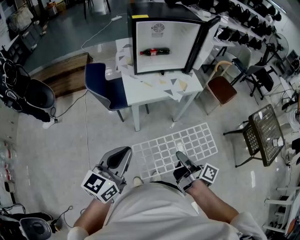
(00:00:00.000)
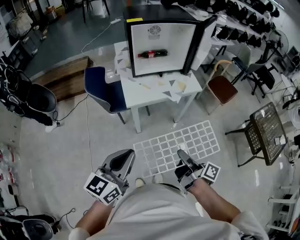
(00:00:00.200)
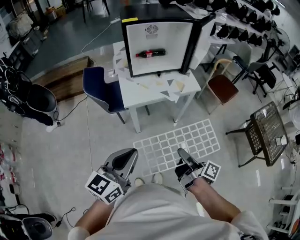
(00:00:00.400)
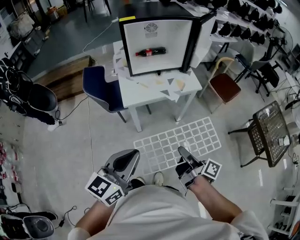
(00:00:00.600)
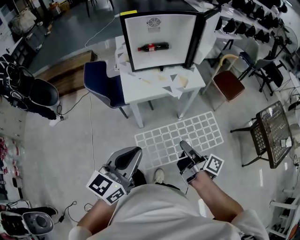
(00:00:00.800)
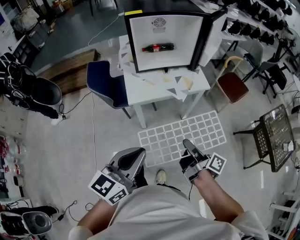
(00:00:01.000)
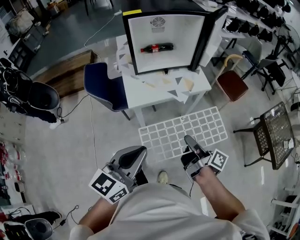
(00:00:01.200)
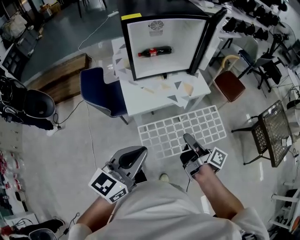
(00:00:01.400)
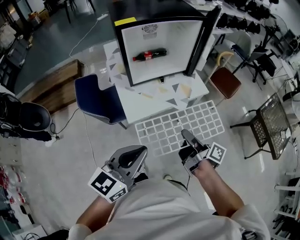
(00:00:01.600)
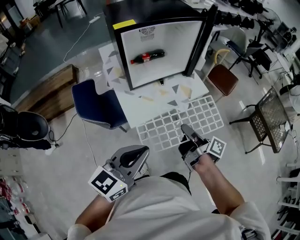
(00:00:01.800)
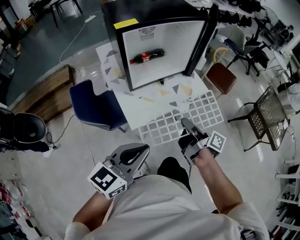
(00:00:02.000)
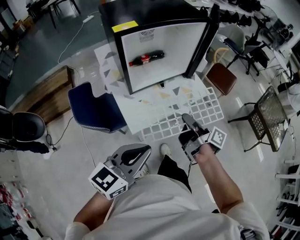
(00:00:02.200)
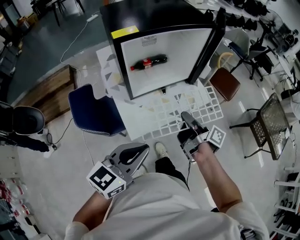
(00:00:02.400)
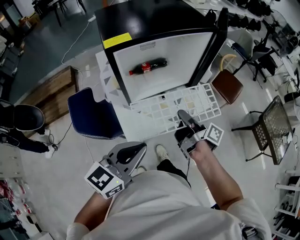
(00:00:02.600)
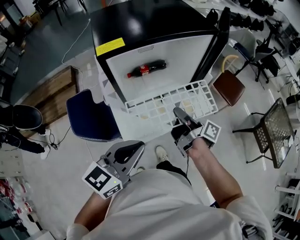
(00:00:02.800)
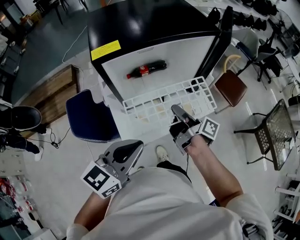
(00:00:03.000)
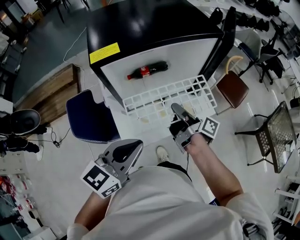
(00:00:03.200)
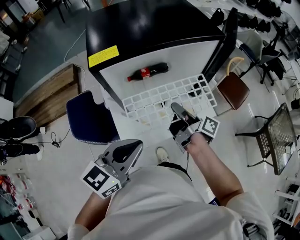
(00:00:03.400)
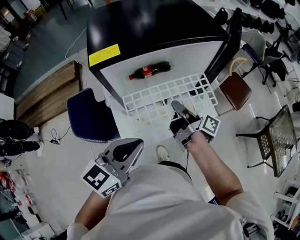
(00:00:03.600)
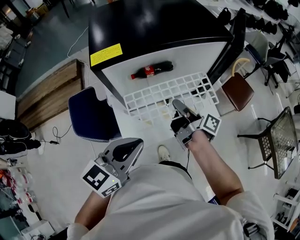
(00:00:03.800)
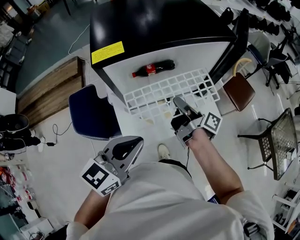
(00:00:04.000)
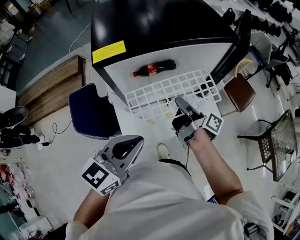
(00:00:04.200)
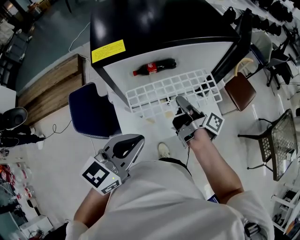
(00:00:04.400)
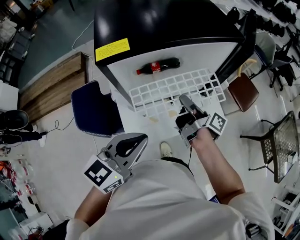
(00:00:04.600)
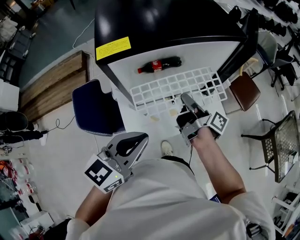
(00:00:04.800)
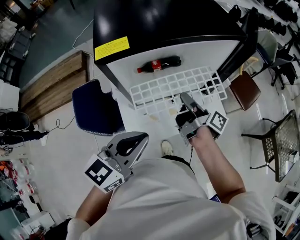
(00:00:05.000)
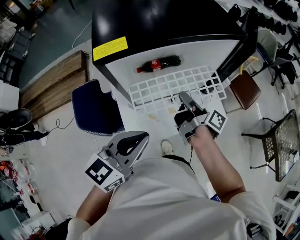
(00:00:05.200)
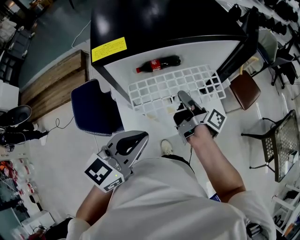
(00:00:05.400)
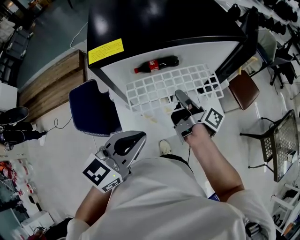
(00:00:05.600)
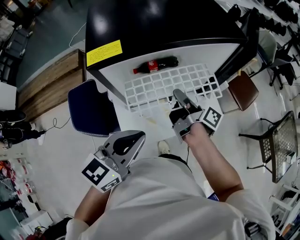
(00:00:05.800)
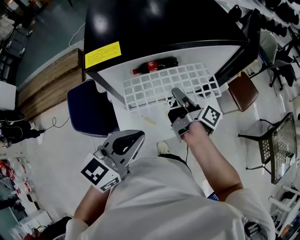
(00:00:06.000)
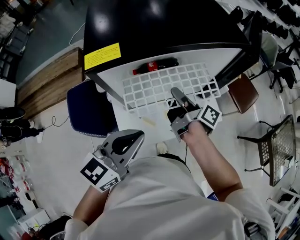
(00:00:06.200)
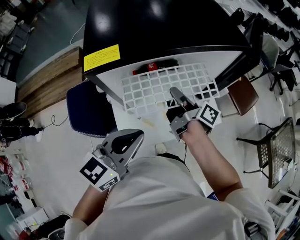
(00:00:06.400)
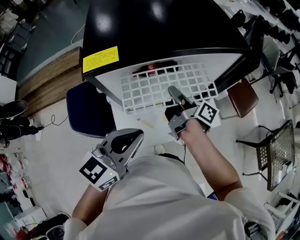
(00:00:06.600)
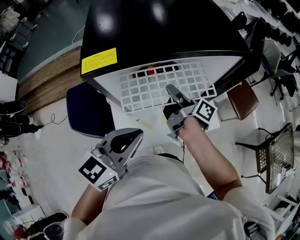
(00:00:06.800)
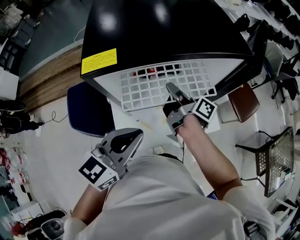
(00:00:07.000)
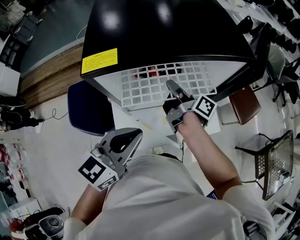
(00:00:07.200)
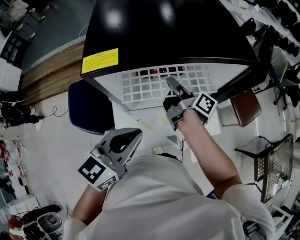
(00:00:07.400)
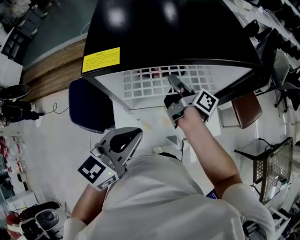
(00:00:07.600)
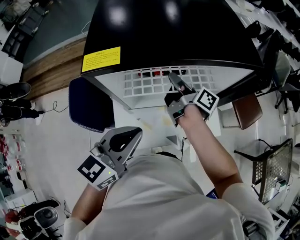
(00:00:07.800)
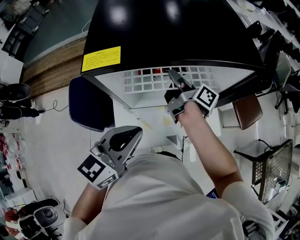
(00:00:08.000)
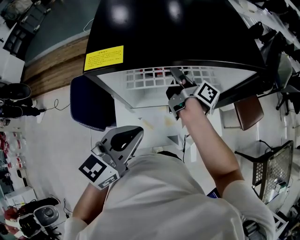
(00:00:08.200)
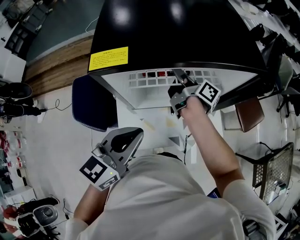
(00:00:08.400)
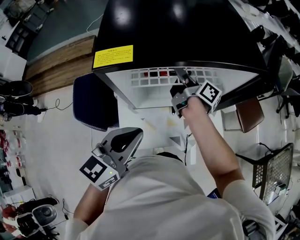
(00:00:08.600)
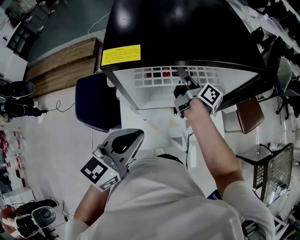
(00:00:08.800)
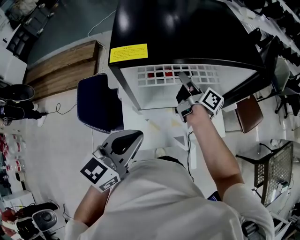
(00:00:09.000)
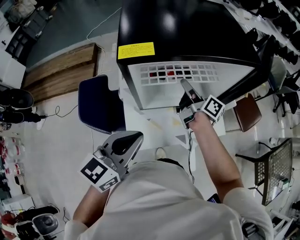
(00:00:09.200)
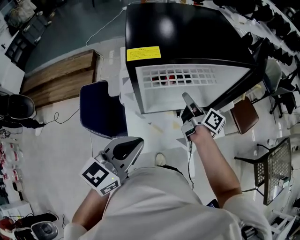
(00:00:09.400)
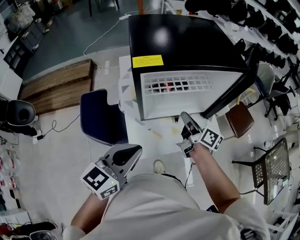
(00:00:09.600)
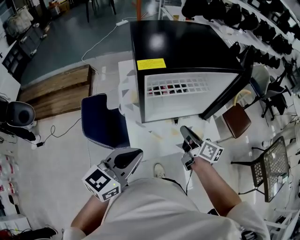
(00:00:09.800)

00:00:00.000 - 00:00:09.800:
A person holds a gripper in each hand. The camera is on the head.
00:00:00.000 - 00:00:01.400: The left gripper ends up roughly 15 cm from where it was.
00:00:01.400 - 00:00:02.800: The left gripper changes place by roughly 25 cm.
00:00:02.800 - 00:00:04.200: The left gripper changes place by roughly 5 cm.
00:00:08.400 - 00:00:09.800: The left gripper shifts by roughly 15 cm.

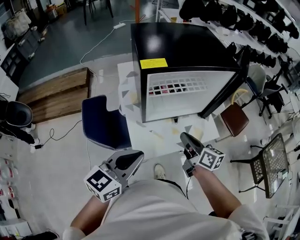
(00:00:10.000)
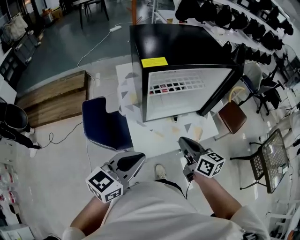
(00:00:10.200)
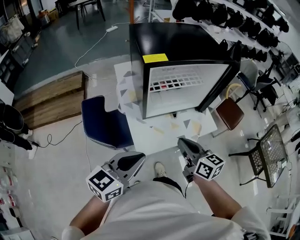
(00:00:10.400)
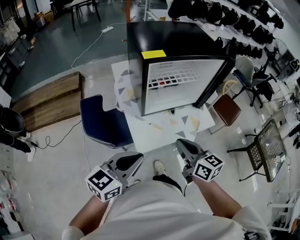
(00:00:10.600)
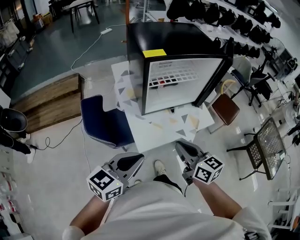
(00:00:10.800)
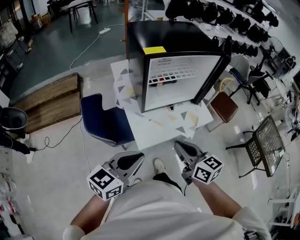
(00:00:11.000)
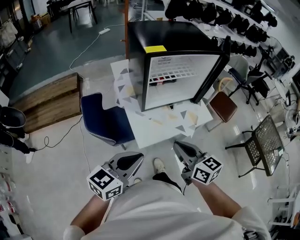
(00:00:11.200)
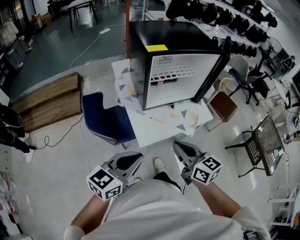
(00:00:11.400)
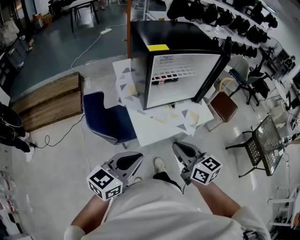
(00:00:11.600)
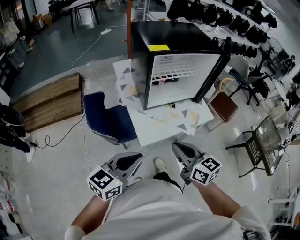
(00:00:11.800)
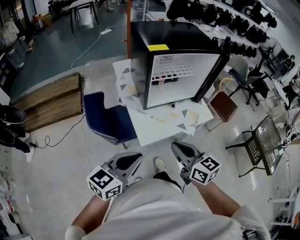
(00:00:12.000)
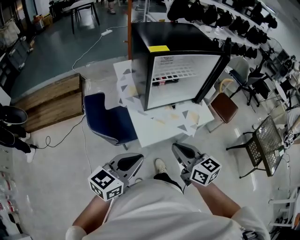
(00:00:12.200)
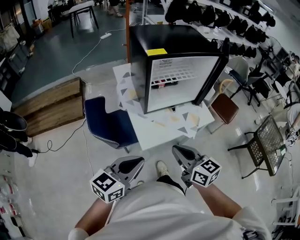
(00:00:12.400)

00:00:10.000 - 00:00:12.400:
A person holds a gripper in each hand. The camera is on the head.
00:00:10.000 - 00:00:11.200: The left gripper moves some 10 cm.

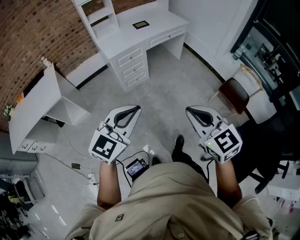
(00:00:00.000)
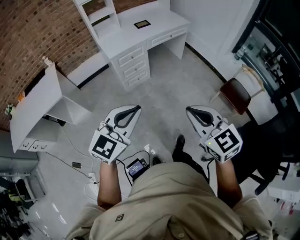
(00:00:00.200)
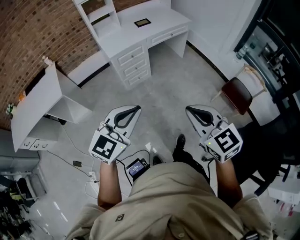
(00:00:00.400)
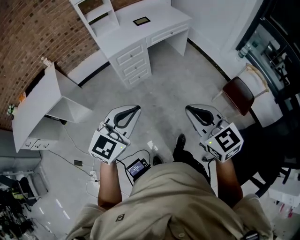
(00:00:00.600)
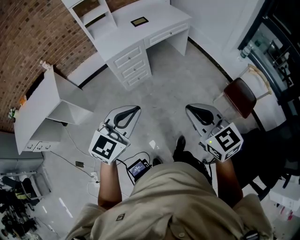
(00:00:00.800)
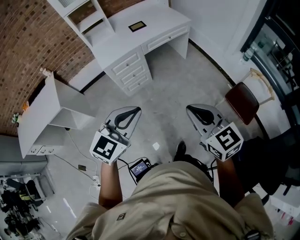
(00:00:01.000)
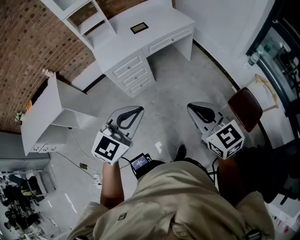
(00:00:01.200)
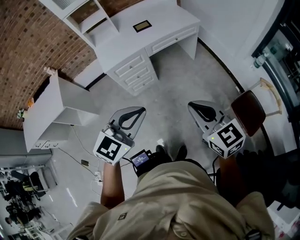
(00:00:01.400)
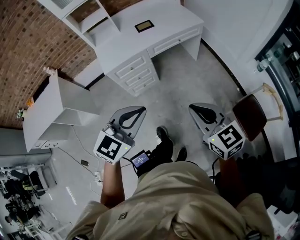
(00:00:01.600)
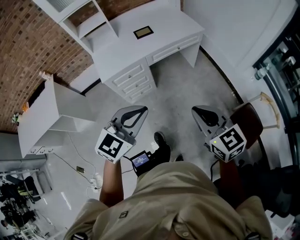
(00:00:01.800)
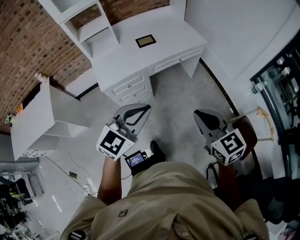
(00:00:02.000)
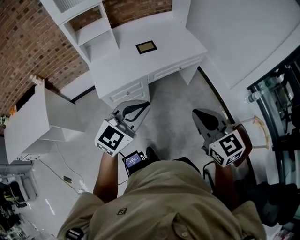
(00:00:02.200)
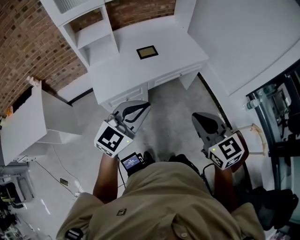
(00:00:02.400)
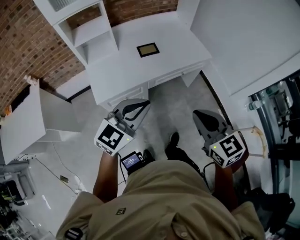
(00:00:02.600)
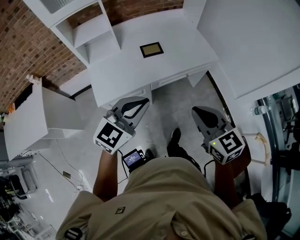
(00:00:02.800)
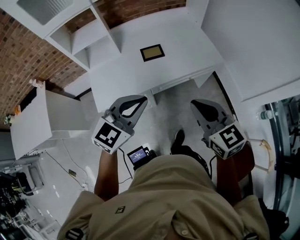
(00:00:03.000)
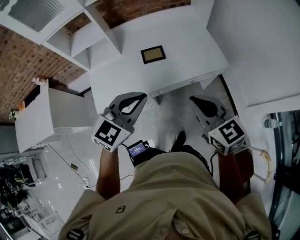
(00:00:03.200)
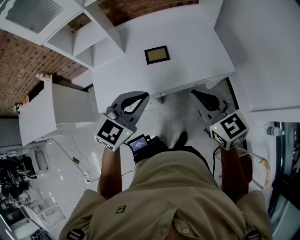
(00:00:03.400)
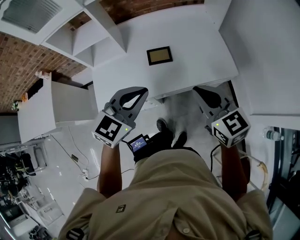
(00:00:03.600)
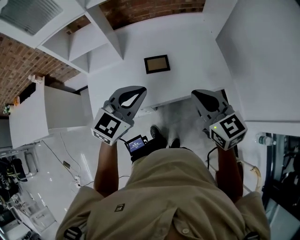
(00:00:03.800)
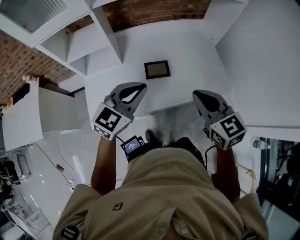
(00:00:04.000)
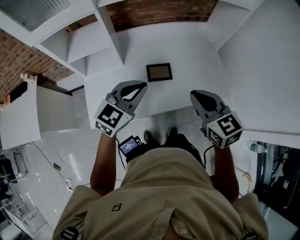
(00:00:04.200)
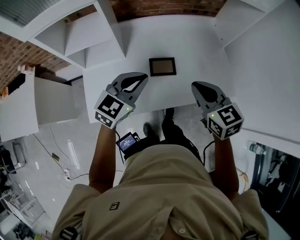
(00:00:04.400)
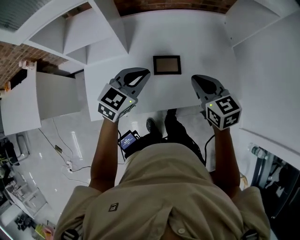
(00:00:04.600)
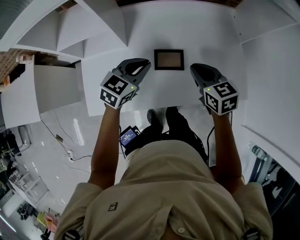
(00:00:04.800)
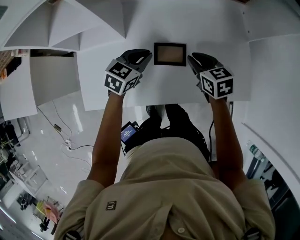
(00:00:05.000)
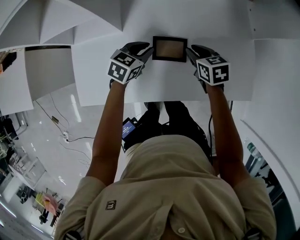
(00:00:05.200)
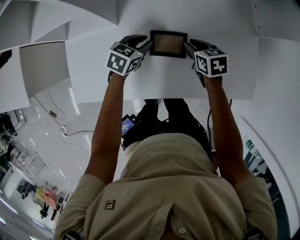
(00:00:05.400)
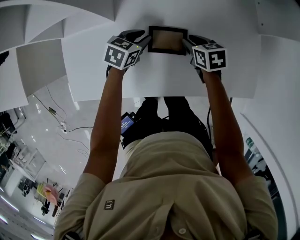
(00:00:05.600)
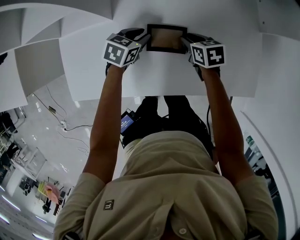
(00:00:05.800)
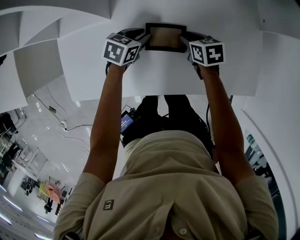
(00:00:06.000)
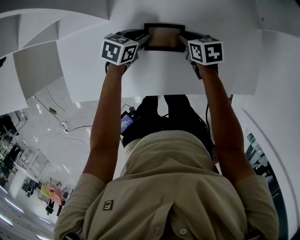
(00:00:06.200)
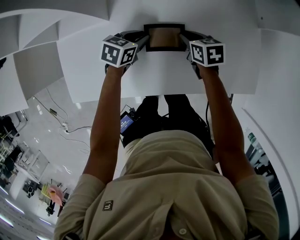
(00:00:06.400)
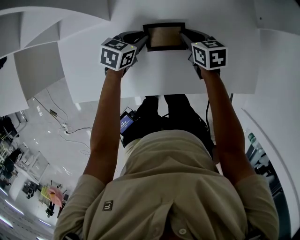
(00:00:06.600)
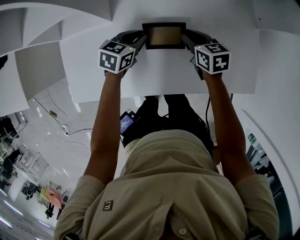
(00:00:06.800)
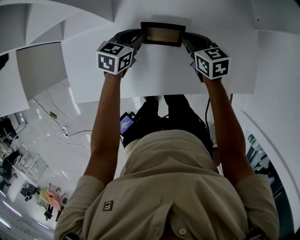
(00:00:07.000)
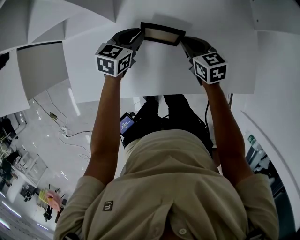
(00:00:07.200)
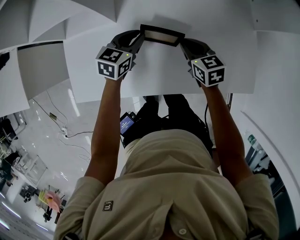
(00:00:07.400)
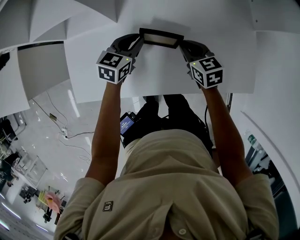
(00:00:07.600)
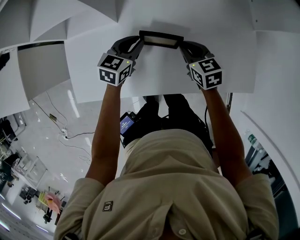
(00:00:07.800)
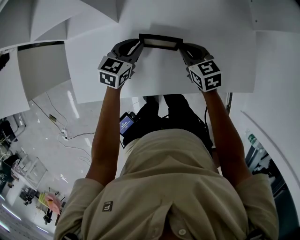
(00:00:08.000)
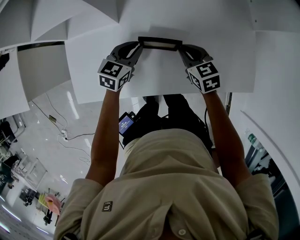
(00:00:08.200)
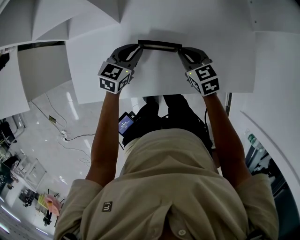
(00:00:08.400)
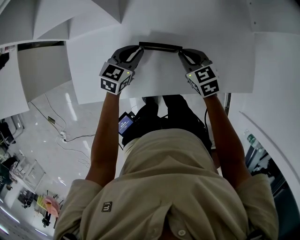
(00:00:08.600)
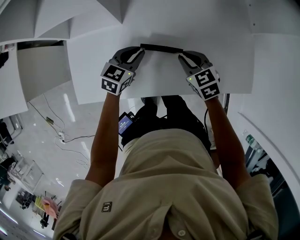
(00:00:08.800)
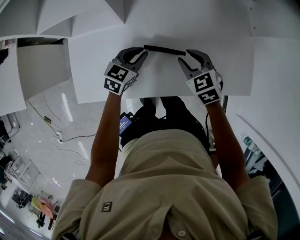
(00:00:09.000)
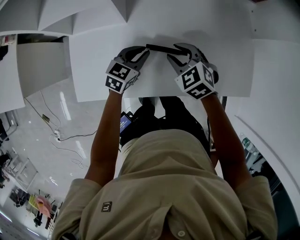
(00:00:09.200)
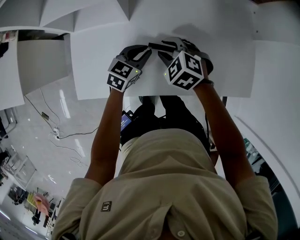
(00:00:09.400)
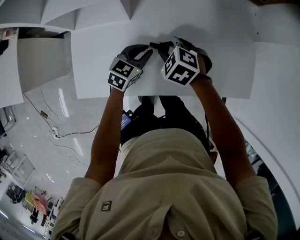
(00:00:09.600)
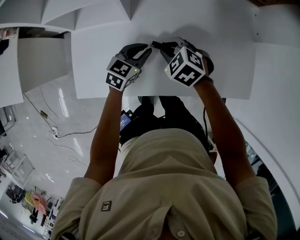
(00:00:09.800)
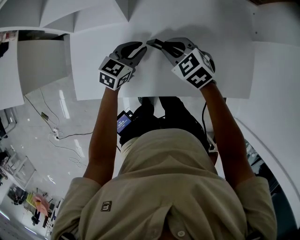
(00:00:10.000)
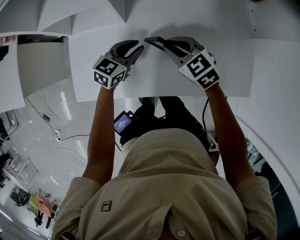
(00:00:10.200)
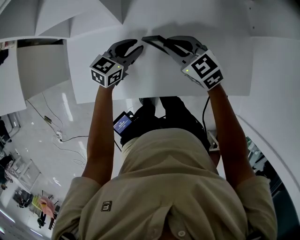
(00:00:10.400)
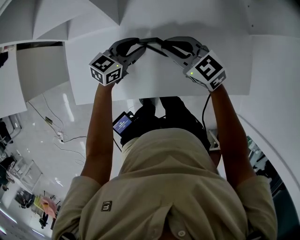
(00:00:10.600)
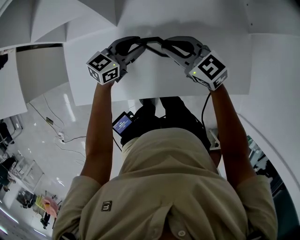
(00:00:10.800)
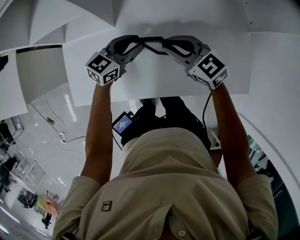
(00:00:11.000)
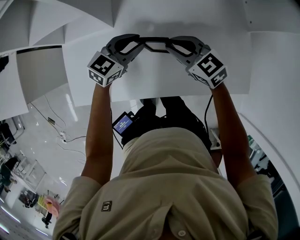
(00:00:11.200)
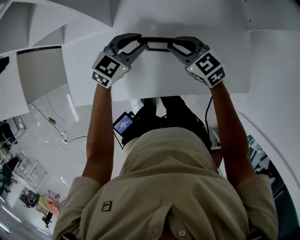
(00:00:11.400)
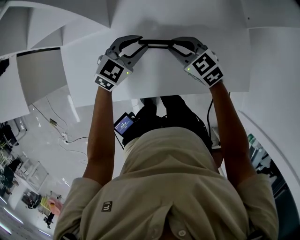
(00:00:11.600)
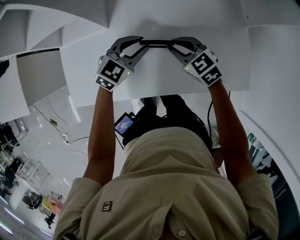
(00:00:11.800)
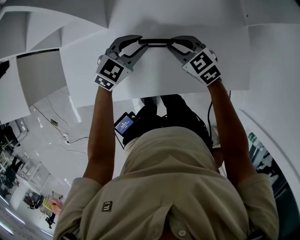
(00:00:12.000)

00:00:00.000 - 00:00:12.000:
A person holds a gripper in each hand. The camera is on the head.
00:00:00.000 - 00:00:01.600: Both grippers travel together forward and to the right, roughly 35 cm.
00:00:01.600 - 00:00:03.000: The pair of grippers is taken forward, approximately 40 cm.
00:00:03.000 - 00:00:04.400: Both grippers move forward, about 30 cm.
00:00:04.400 - 00:00:06.000: Both grippers move downward and forward, approximately 35 cm. The right gripper changes its angle by roughly 30 degrees, and opens its fingers. The left gripper swivels approximately 40 degrees.
00:00:06.000 - 00:00:07.600: Both grippers travel together upward, roughly 5 cm. The left gripper changes its angle by some 20 degrees, while the right gripper closes.
00:00:07.600 - 00:00:09.000: The left gripper goes about 5 cm backward. Meanwhile the right gripper moves approximately 5 cm, rotates approximately 20 degrees, and opens its fingers.
00:00:09.000 - 00:00:10.400: The right gripper shifts about 5 cm to the left, and rotates some 20 degrees.
00:00:10.400 - 00:00:12.000: The two grippers go some 5 cm to the right. The left gripper turns by roughly 30 degrees.
